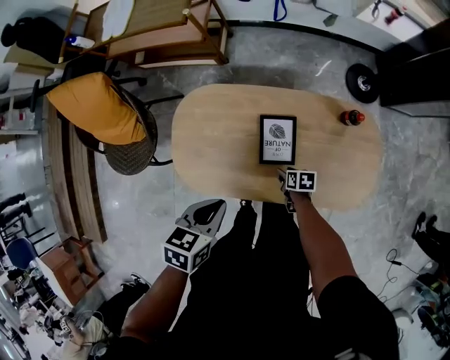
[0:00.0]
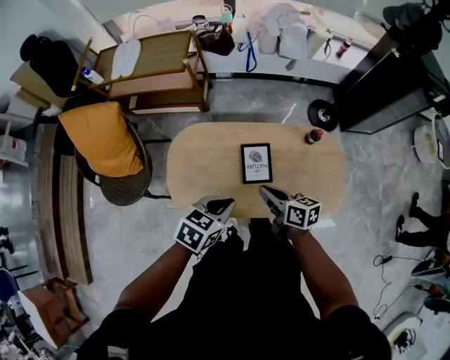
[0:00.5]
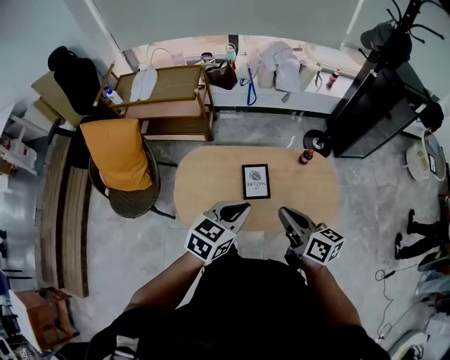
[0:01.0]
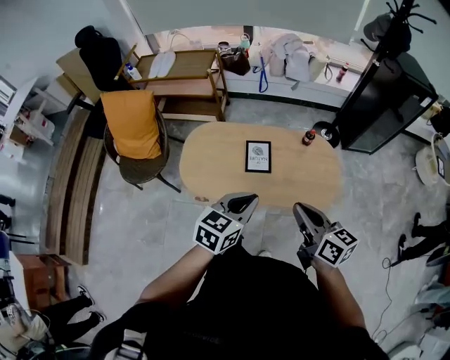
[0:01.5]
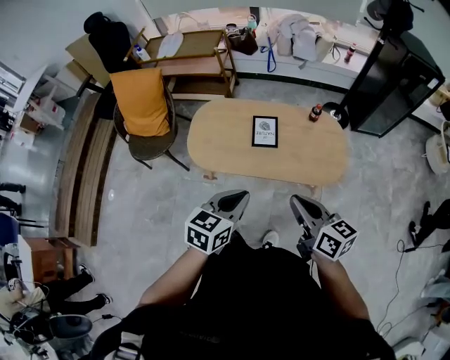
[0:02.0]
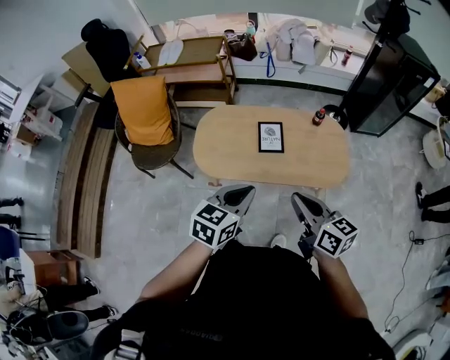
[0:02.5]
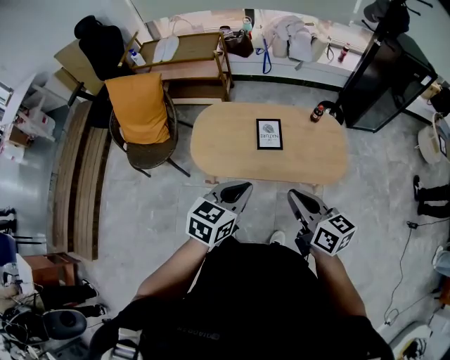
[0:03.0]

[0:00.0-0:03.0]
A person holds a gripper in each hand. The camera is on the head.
0:00.0 to 0:01.5: The left gripper heads upward, backward and to the right, covering roughly 30 cm, and swivels about 30 degrees. Meanwhile the right gripper shifts roughly 60 cm upward and backward, angles its fingers upward, by roughly 50 degrees, and closes its fingers.
0:01.5 to 0:03.0: The two grippers go about 10 cm to the left and backward.

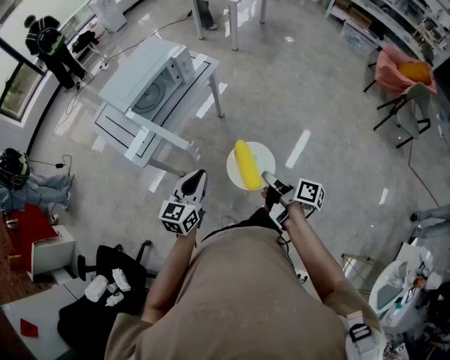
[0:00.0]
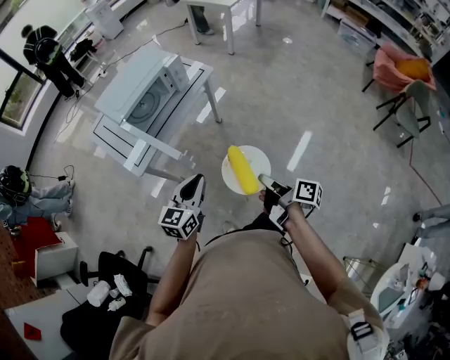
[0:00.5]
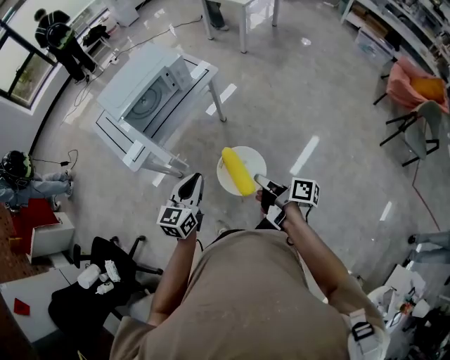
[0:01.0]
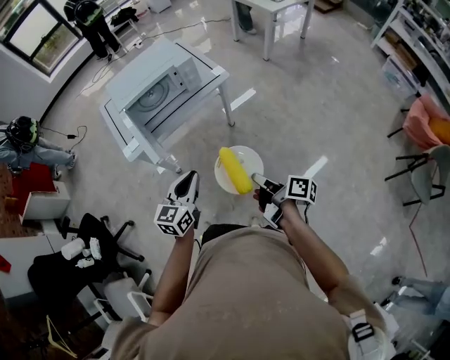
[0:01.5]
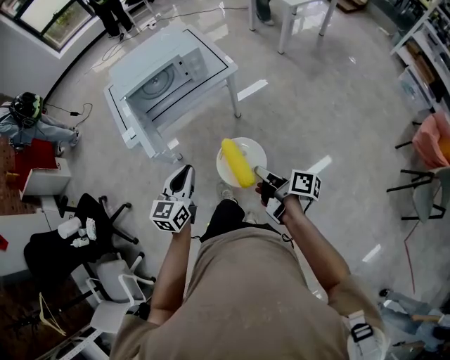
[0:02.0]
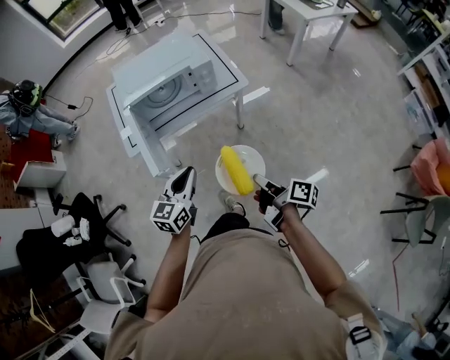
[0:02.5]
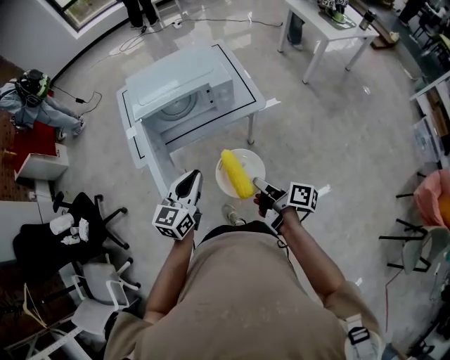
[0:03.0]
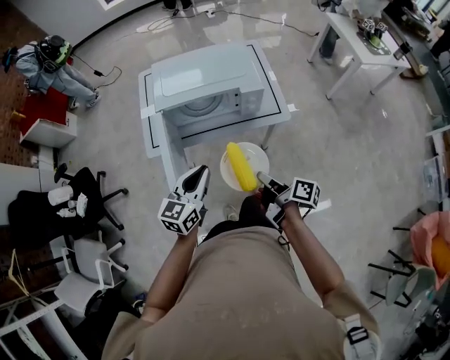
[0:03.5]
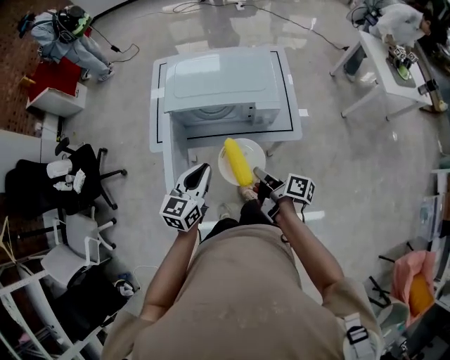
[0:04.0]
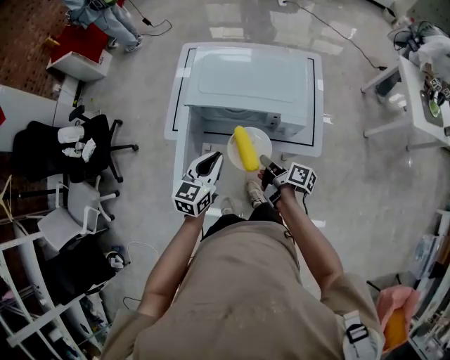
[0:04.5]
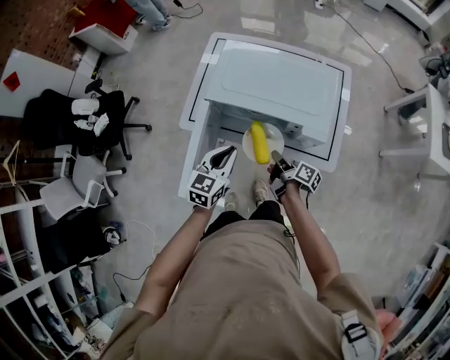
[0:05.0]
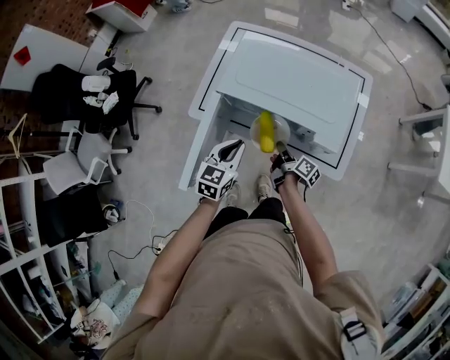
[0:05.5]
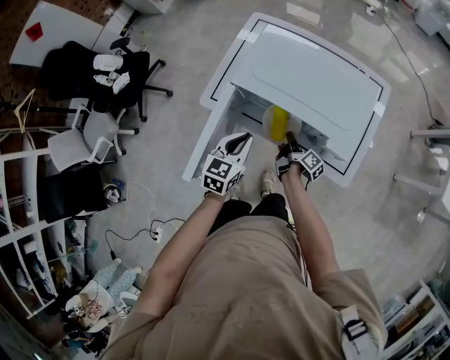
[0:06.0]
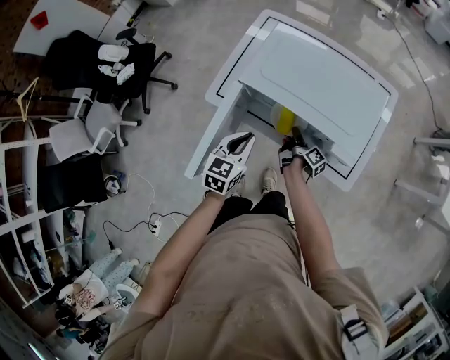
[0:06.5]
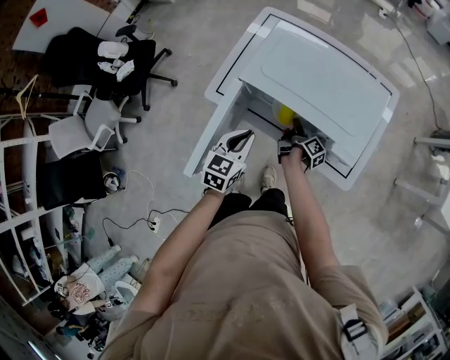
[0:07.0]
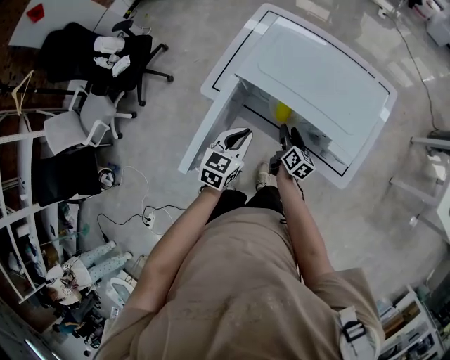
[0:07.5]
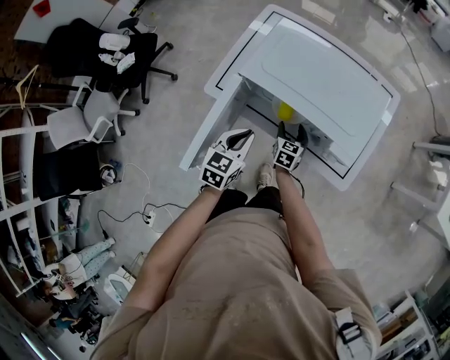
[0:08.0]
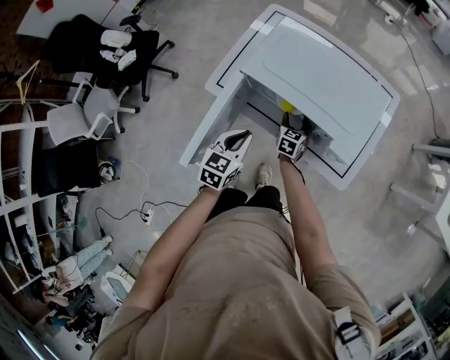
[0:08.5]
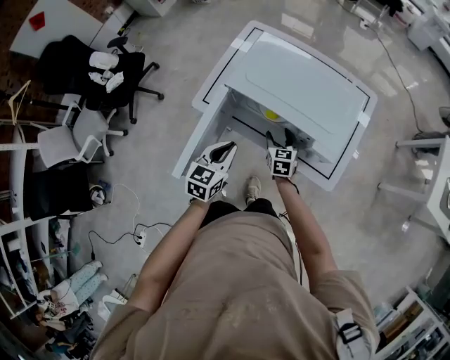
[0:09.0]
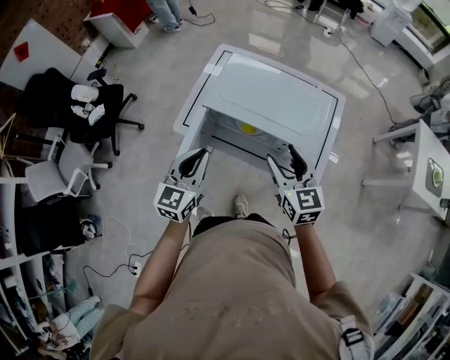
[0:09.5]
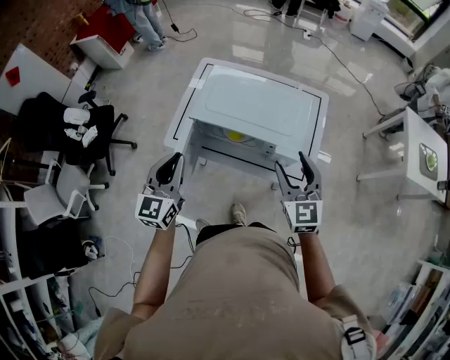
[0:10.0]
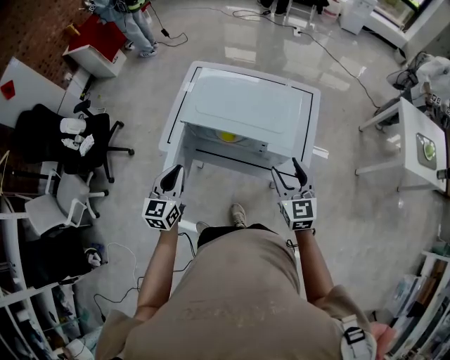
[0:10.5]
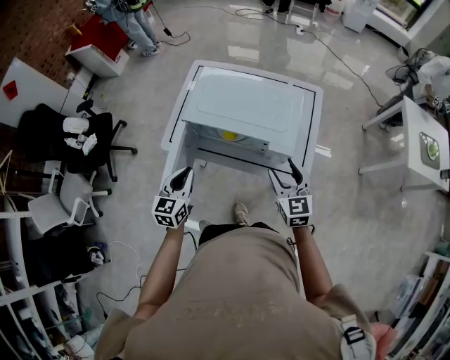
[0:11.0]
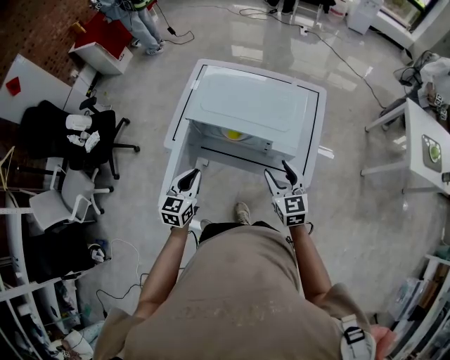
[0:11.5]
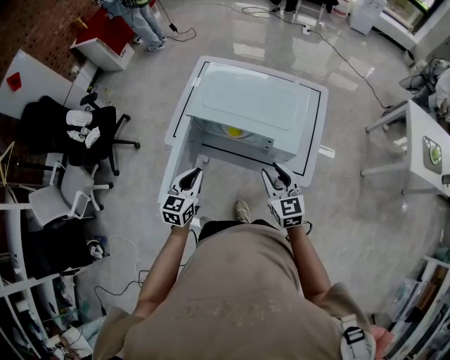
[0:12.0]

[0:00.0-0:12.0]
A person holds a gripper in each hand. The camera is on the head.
0:00.0 to 0:02.0: The left gripper changes place by some 20 cm, and turns by about 30 degrees, while the right gripper changes place by some 25 cm, and rotates approximately 30 degrees.
0:02.0 to 0:04.0: Both grippers travel together forward, about 35 cm. The right gripper turns by about 30 degrees; the left gripper turns by some 20 degrees.
0:04.0 to 0:06.0: The left gripper travels forward and downward by approximately 15 cm, and changes its angle by about 30 degrees, while the right gripper is displaced forward and downward by about 30 cm.
0:06.0 to 0:08.0: The right gripper rotates around the line of its fingers by about 70 degrees, counterclockwise from behind, and opens its fingers.
0:08.0 to 0:10.0: The right gripper is displaced upward by approximately 35 cm, and rotates roughly 30 degrees. Meanwhile the left gripper heads upward, covering some 20 cm, and swivels about 30 degrees.
0:10.0 to 0:12.0: The two grippers go some 15 cm downward. The right gripper closes its fingers.

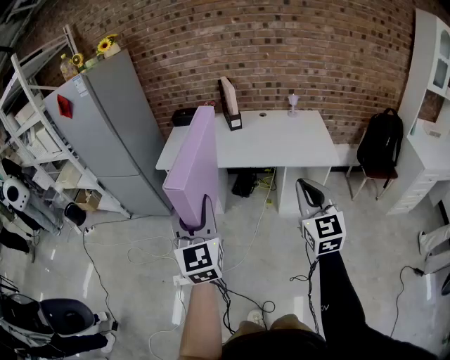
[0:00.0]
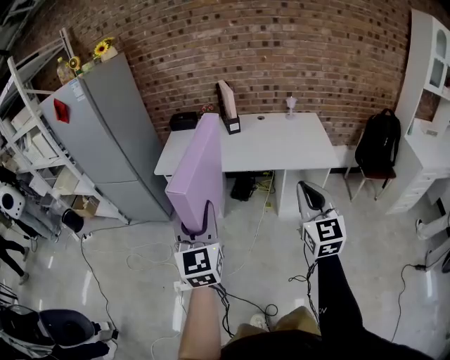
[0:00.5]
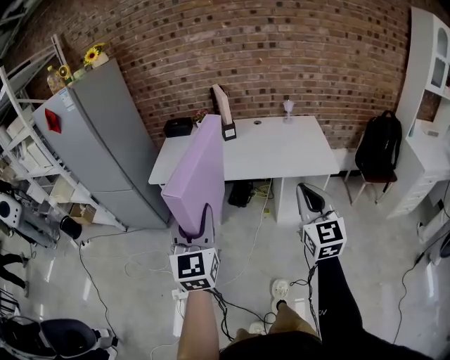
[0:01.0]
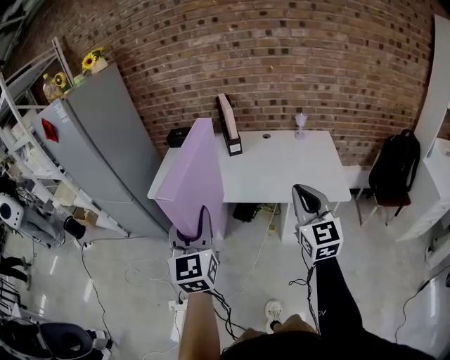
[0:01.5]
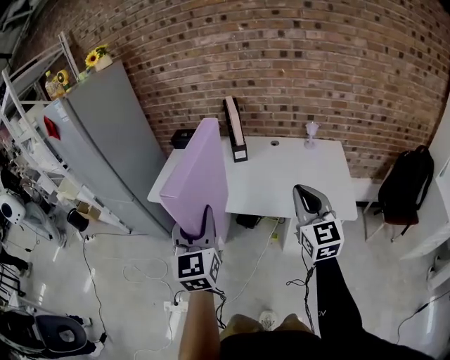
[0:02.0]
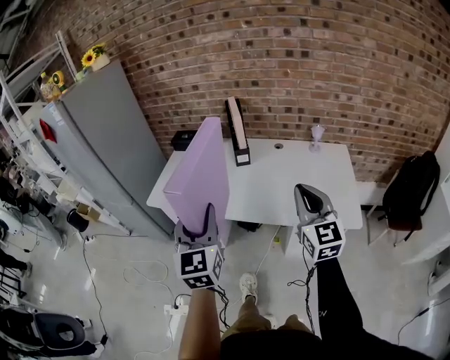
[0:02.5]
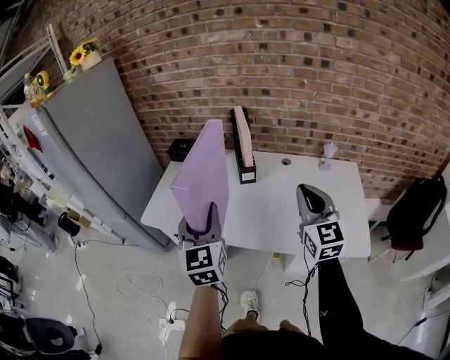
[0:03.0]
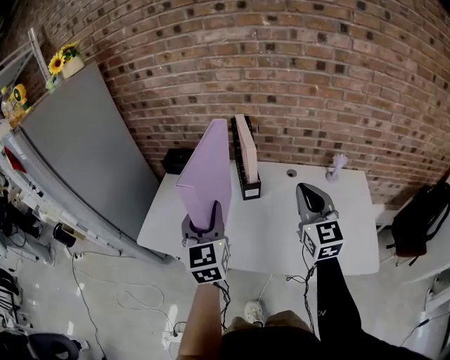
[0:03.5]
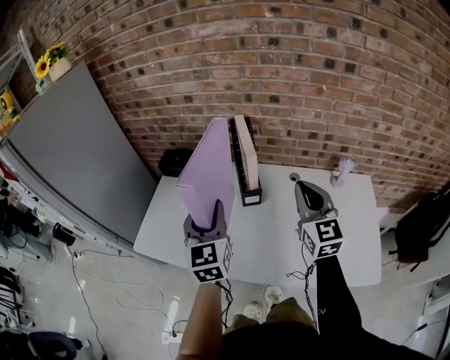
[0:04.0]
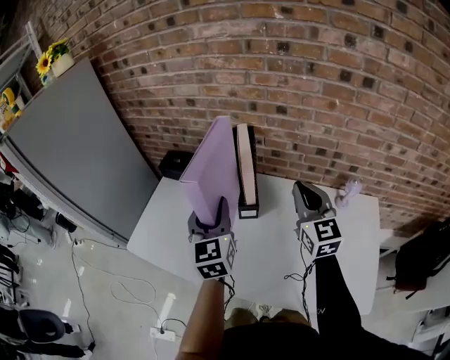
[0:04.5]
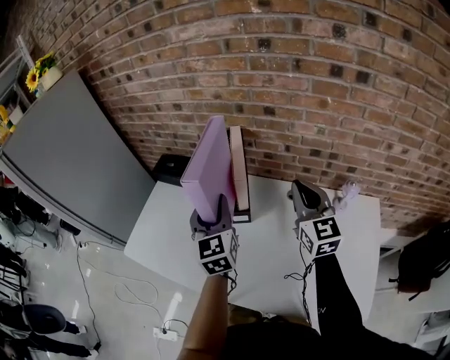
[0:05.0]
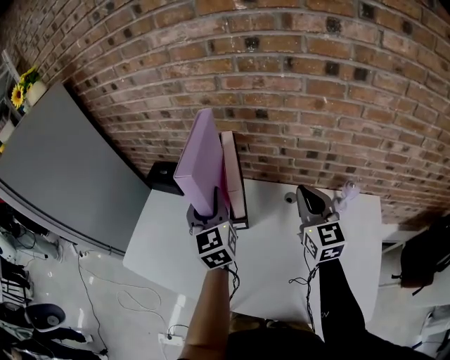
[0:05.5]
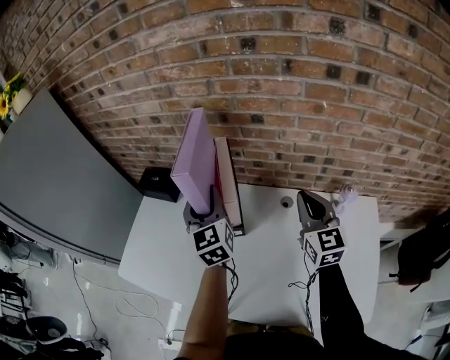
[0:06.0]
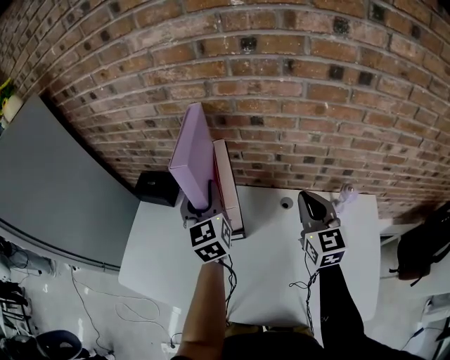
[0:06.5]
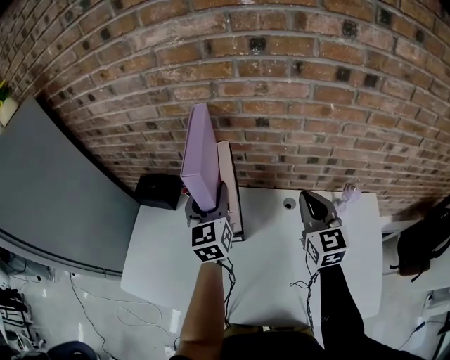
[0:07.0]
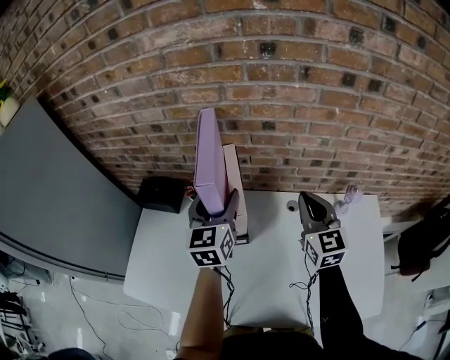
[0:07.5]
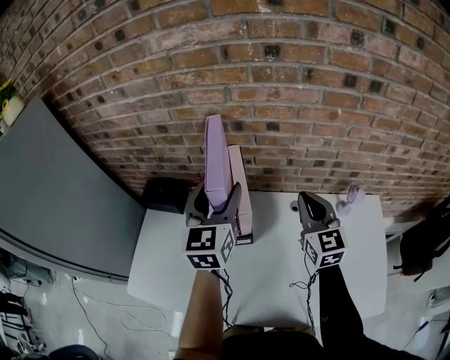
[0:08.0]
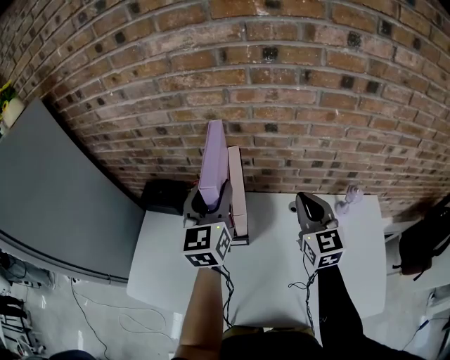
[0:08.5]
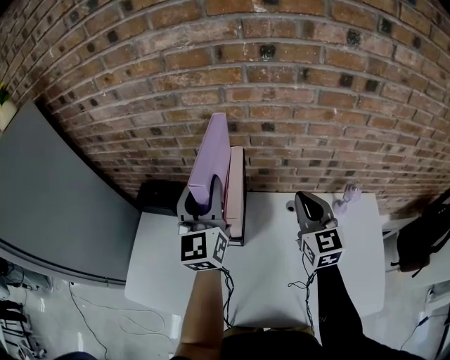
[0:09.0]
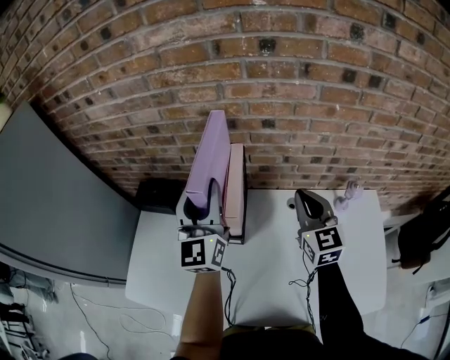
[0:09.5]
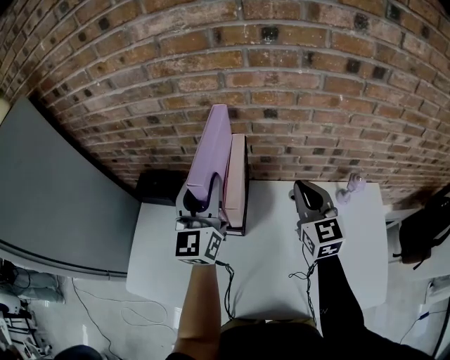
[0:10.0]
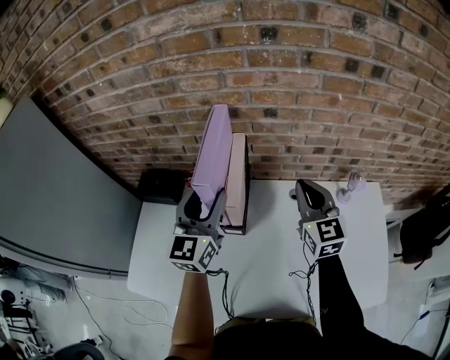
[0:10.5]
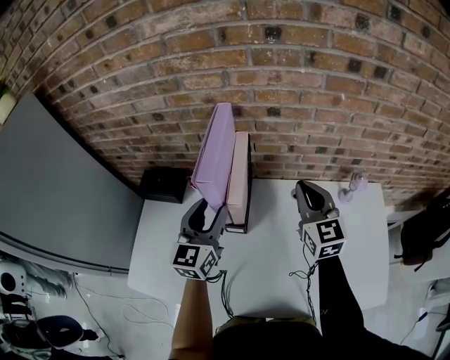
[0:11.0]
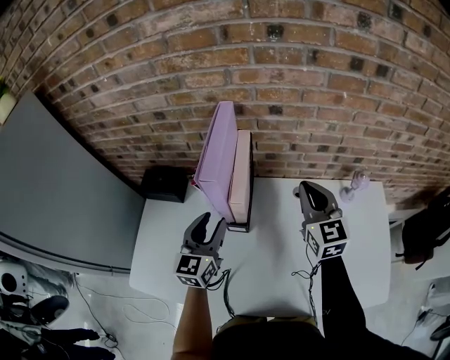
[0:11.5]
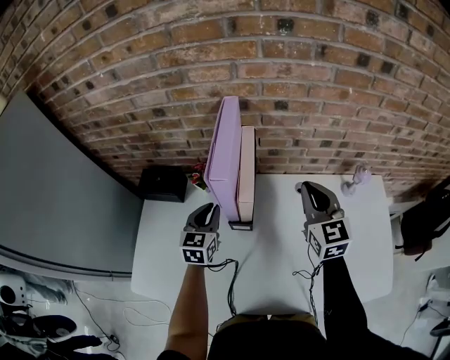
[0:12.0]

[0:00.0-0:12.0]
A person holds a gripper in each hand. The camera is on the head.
0:00.0 to 0:02.0: The right gripper goes about 30 cm forward. Meanwhile the left gripper moves forward and to the right, some 30 cm.
0:02.0 to 0:04.0: The pair of grippers is taken forward, roughly 40 cm.
0:04.0 to 0:06.0: Both grippers move forward and to the right, approximately 20 cm.
0:06.0 to 0:08.0: The left gripper goes roughly 5 cm upward, rotates some 20 degrees, and opens. The right gripper shifts approximately 5 cm to the left.
0:08.0 to 0:10.0: The left gripper closes up.
0:10.0 to 0:12.0: The left gripper moves downward, some 20 cm, angles its fingers downward, by roughly 30 degrees, and closes.
